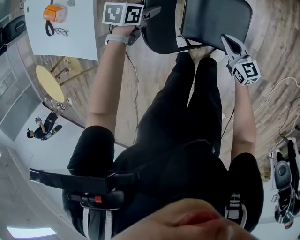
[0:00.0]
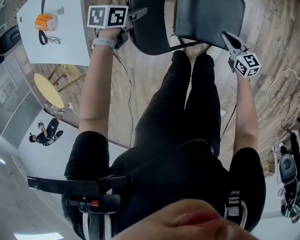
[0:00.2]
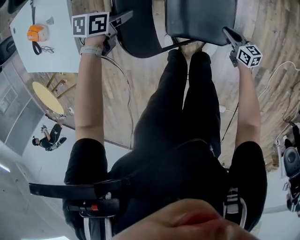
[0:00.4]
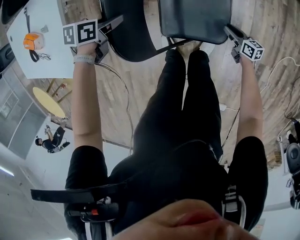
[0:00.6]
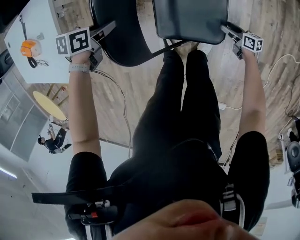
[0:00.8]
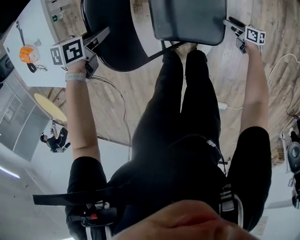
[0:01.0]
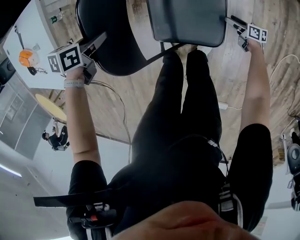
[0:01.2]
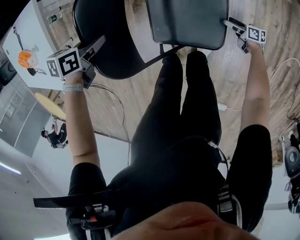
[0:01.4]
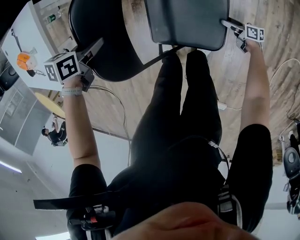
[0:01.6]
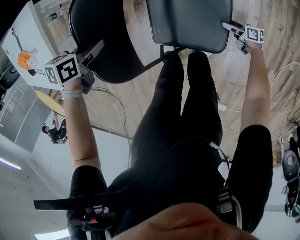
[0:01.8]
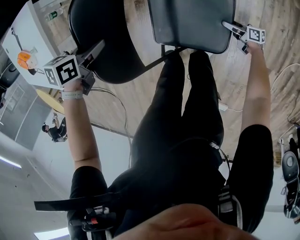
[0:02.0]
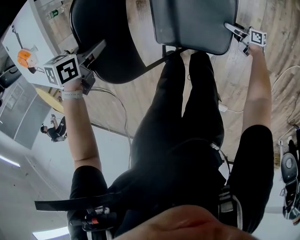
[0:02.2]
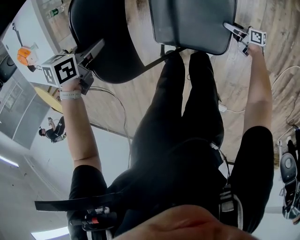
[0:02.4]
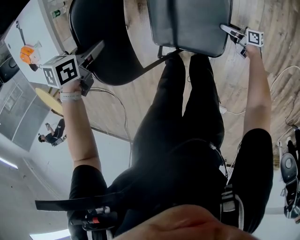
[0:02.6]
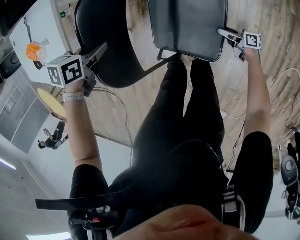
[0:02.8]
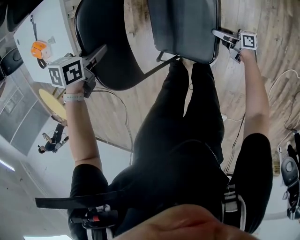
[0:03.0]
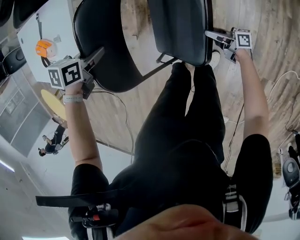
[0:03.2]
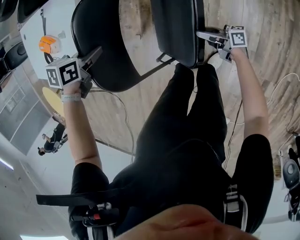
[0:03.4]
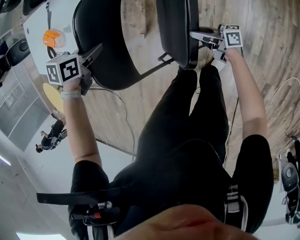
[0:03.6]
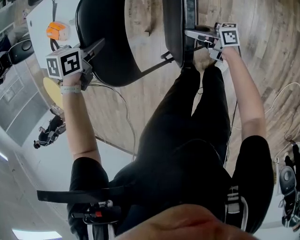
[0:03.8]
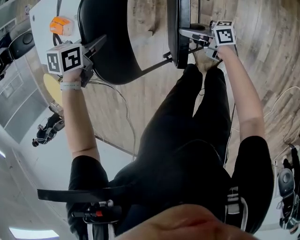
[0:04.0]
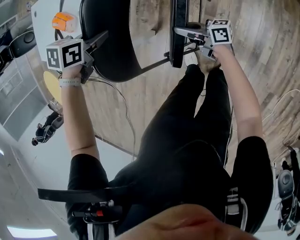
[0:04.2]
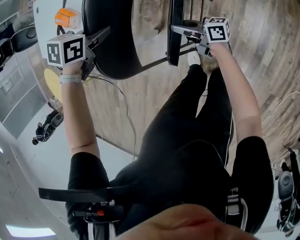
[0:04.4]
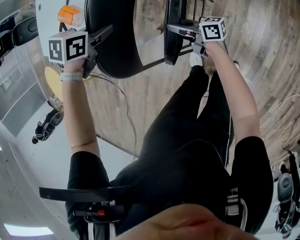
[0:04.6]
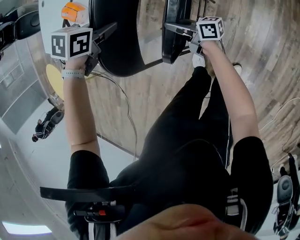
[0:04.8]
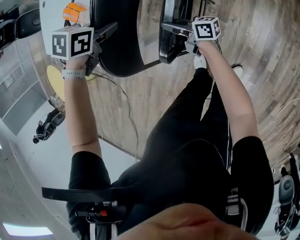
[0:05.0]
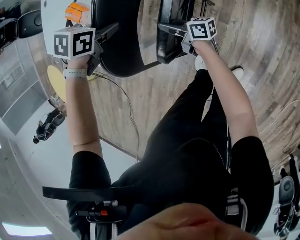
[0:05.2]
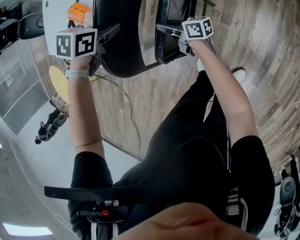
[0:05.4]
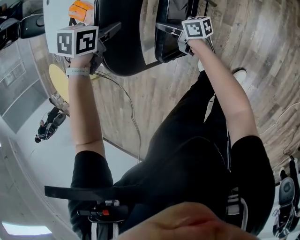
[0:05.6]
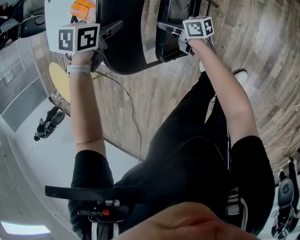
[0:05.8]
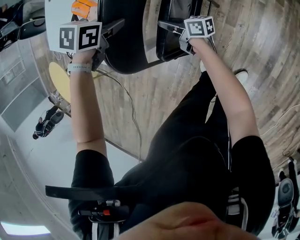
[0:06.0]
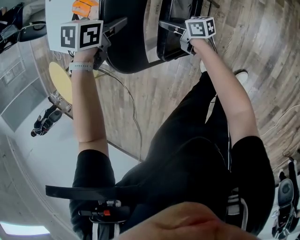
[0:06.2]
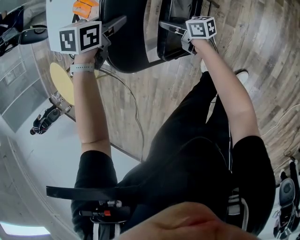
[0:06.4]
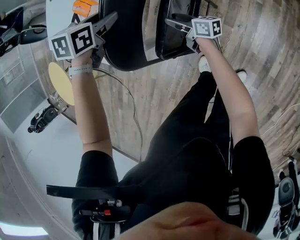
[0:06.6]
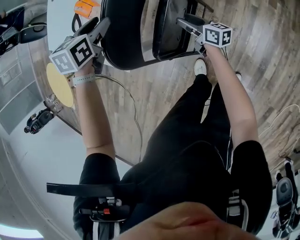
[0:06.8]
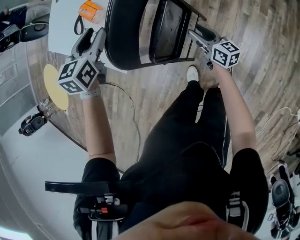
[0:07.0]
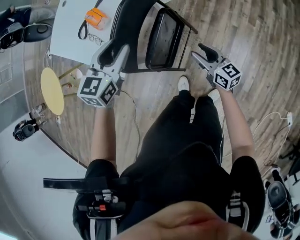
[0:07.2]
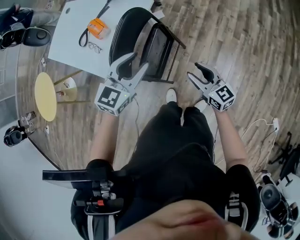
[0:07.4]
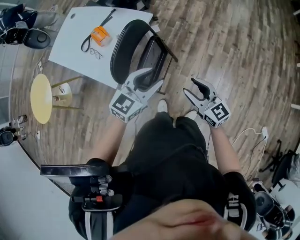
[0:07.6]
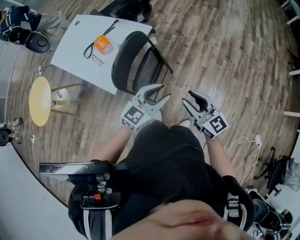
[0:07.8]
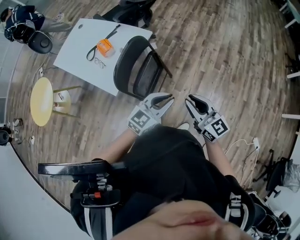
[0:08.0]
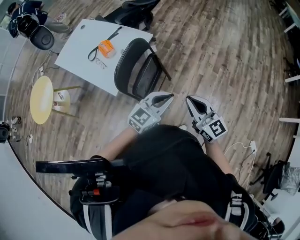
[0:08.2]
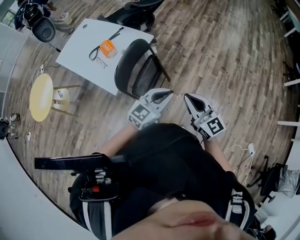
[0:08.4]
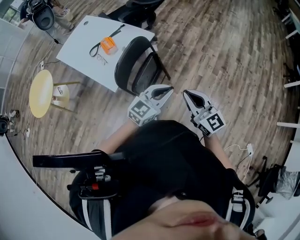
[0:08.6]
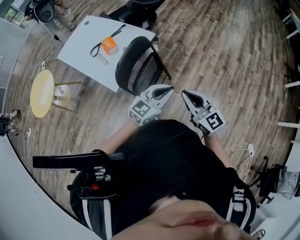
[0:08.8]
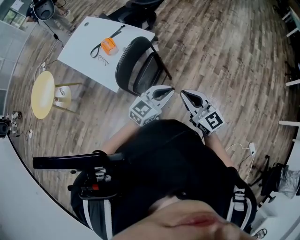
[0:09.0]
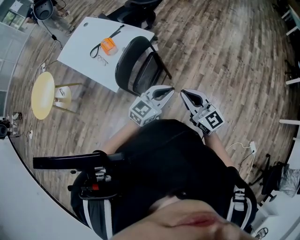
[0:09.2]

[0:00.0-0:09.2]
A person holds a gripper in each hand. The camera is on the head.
0:00.0 to 0:01.6: The left gripper shifts by roughly 10 cm, and closes up. The right gripper moves downward, some 35 cm, rotates around the line of its fingers by approximately 40 degrees, clockwise from behind, and opens its fingers.
0:01.6 to 0:03.0: The left gripper moves upward, approximately 5 cm. Meanwhile the right gripper shifts roughly 15 cm upward, rotates some 20 degrees, and closes its fingers.
0:03.0 to 0:04.6: The right gripper ends up approximately 40 cm from where it was, and closes. The left gripper ends up approximately 15 cm from where it was.
0:04.6 to 0:06.2: The right gripper moves about 15 cm. The left gripper ends up about 5 cm from where it was.
0:06.2 to 0:07.6: The left gripper moves about 40 cm, tips its fingers upward by approximately 50 degrees, and opens up. Meanwhile the right gripper goes roughly 35 cm upward, twists some 60 degrees counterclockwise, seen from behind, and opens.
0:07.6 to 0:09.2: The left gripper is displaced to the right and backward by approximately 10 cm, and closes, while the right gripper shifts approximately 15 cm upward, and closes up.

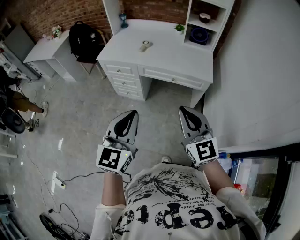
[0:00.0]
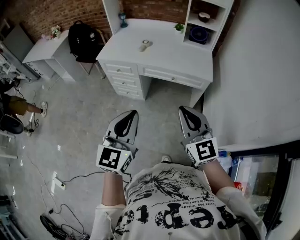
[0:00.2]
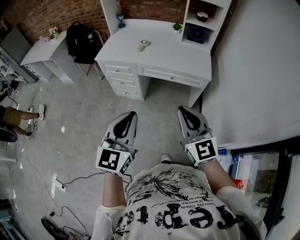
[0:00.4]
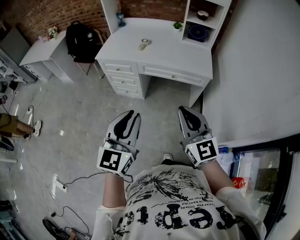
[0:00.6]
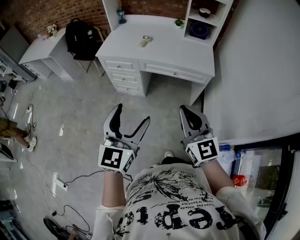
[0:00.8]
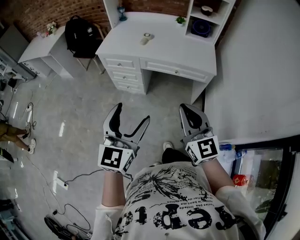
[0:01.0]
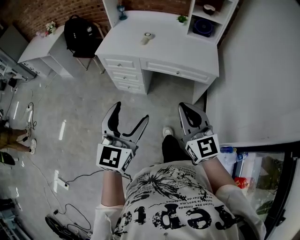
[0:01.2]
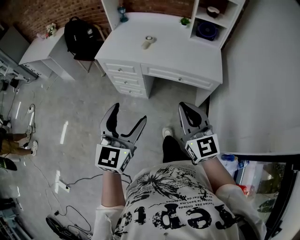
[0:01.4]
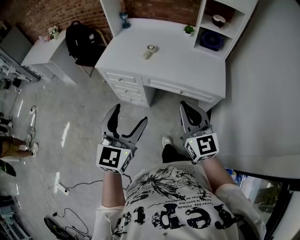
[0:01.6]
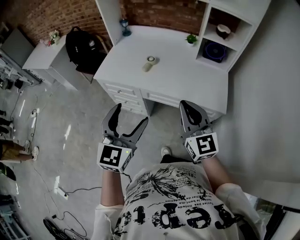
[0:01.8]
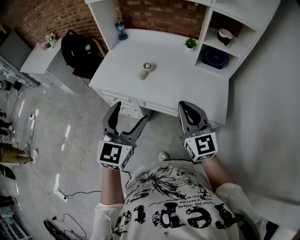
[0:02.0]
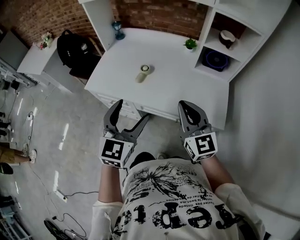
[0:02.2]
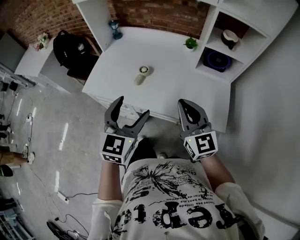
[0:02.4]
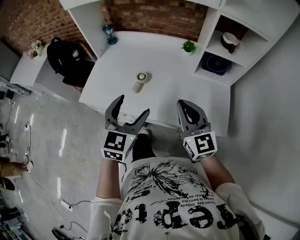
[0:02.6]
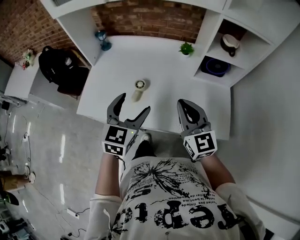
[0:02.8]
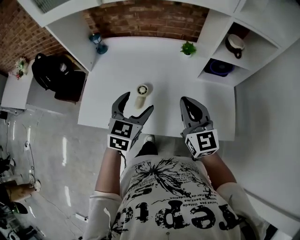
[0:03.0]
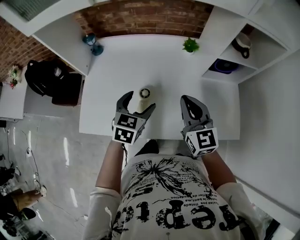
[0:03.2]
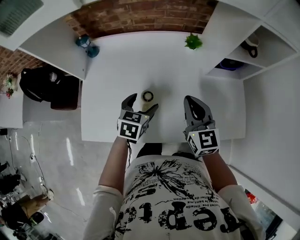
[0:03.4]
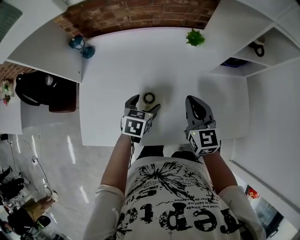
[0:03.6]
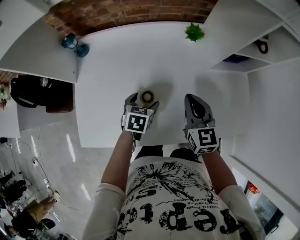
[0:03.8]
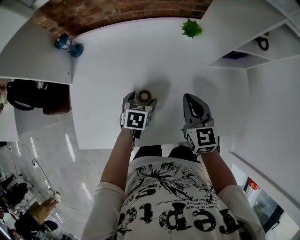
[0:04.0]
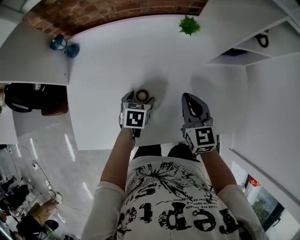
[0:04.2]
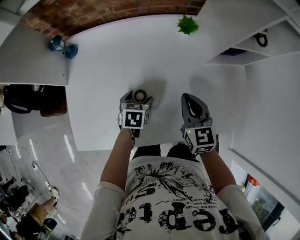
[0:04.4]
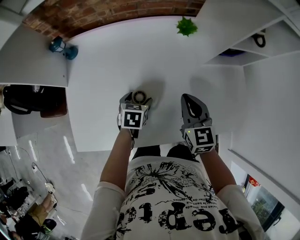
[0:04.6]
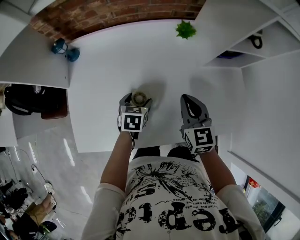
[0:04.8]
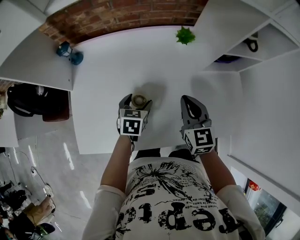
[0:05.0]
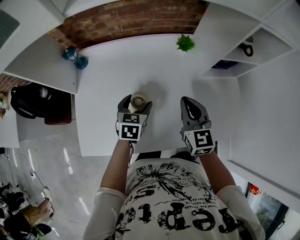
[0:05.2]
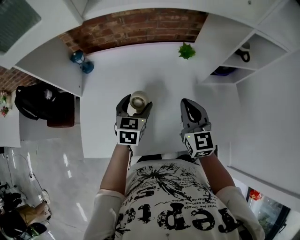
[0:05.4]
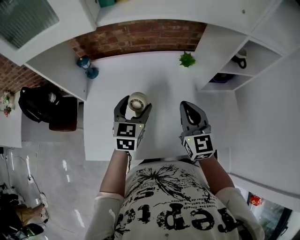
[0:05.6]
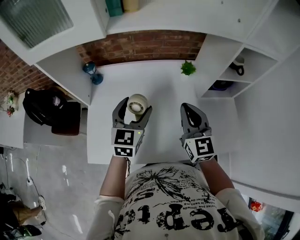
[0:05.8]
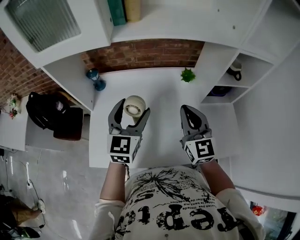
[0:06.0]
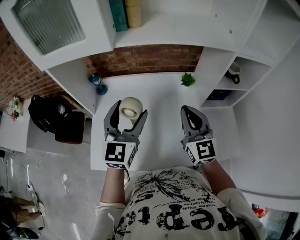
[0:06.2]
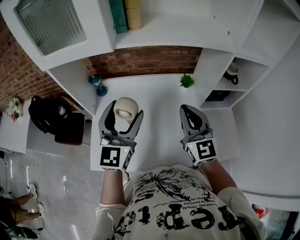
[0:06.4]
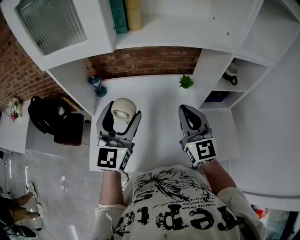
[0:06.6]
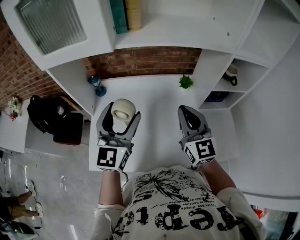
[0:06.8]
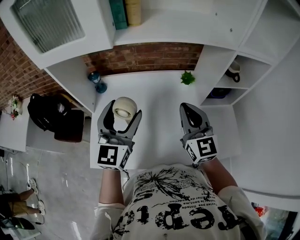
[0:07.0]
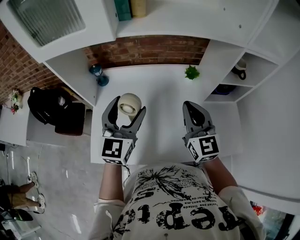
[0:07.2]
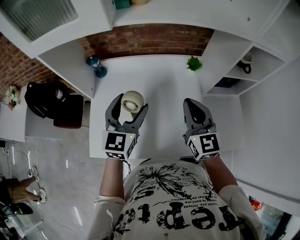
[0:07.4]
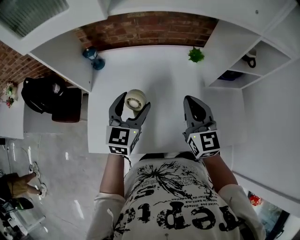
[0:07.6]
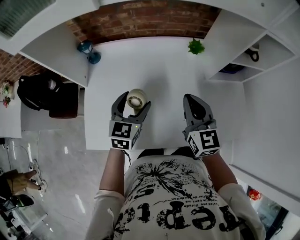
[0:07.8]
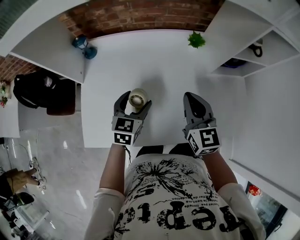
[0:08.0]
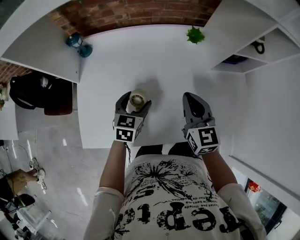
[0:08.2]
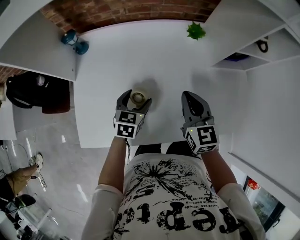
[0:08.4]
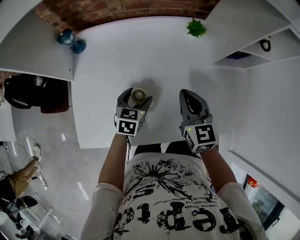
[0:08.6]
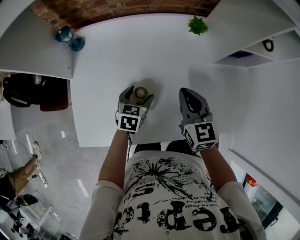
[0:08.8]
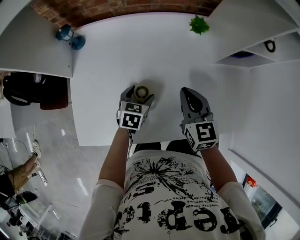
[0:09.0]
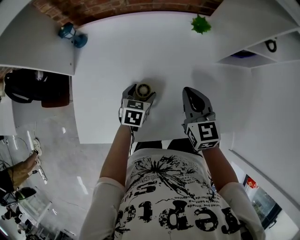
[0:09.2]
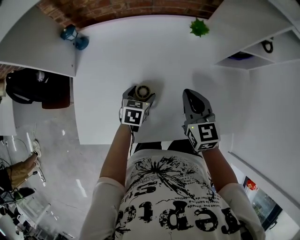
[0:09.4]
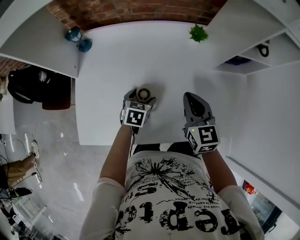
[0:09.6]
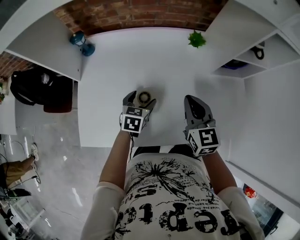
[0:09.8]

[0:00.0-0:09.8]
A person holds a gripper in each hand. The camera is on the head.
0:00.0 to 0:01.4: The right gripper moves forward, about 10 cm, while the left gripper moves forward and to the left, roughly 10 cm, and opens up.
0:01.4 to 0:02.8: The two grippers travel together, forward, approximately 50 cm.
0:02.8 to 0:04.2: The right gripper goes some 25 cm forward, downward and to the left, and changes its angle by about 30 degrees. Meanwhile the left gripper heads downward and forward, covering some 35 cm, and tips its fingers downward by approximately 40 degrees.
0:04.2 to 0:05.6: The left gripper goes about 20 cm upward, and tilts its fingers some 30 degrees upward. The right gripper goes approximately 15 cm upward.
0:05.6 to 0:07.0: The left gripper is displaced upward by about 15 cm, and changes its angle by about 30 degrees. Meanwhile the right gripper heads upward, covering approximately 10 cm.
0:07.0 to 0:08.4: The left gripper shifts roughly 35 cm downward, and tilts its fingers about 40 degrees downward, while the right gripper moves downward, about 20 cm, and swivels about 20 degrees.
0:08.4 to 0:09.8: The grippers make only small movements.

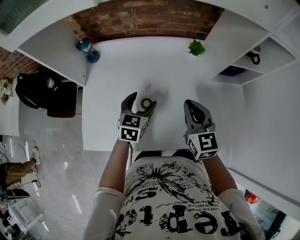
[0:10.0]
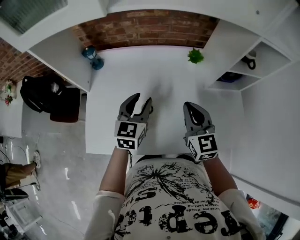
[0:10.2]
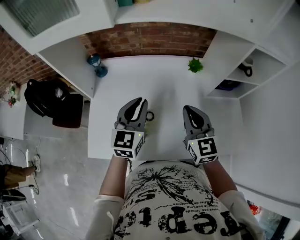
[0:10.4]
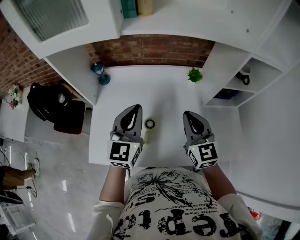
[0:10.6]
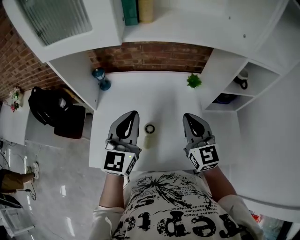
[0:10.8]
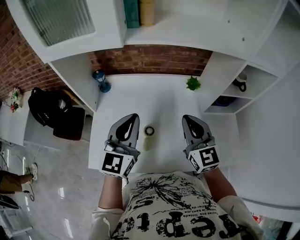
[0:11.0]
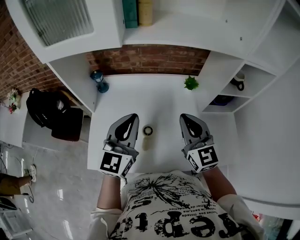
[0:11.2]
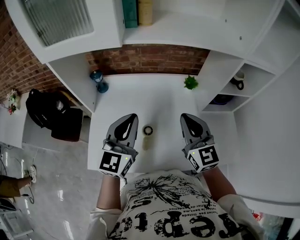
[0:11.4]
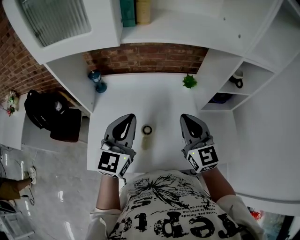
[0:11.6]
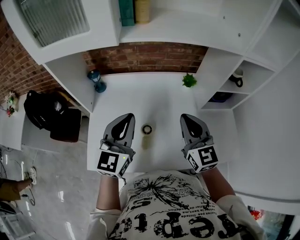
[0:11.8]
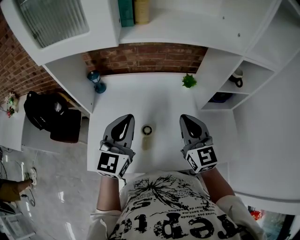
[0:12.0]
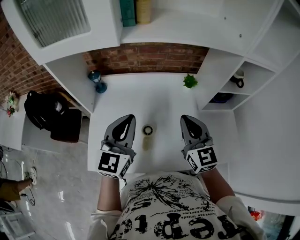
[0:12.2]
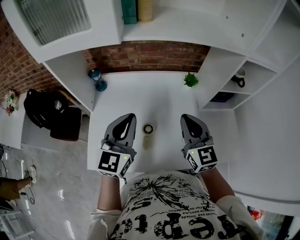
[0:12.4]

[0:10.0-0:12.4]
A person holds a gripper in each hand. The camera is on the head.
0:10.0 to 0:11.2: The right gripper heads upward, covering about 10 cm. Meanwhile the left gripper shifts about 25 cm upward, angles its fingers upward, by some 30 degrees, and closes up.
0:11.2 to 0:12.4: There are only small adjustments of the grippers.

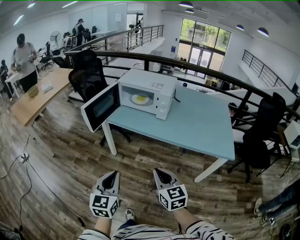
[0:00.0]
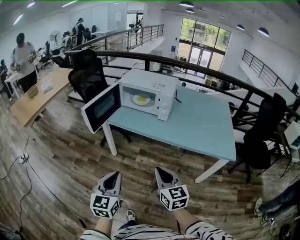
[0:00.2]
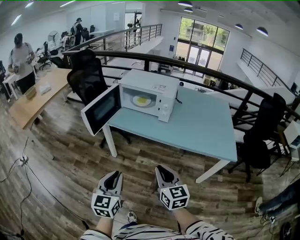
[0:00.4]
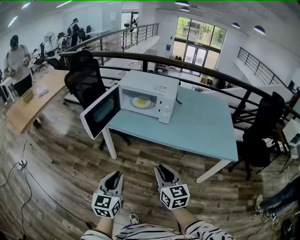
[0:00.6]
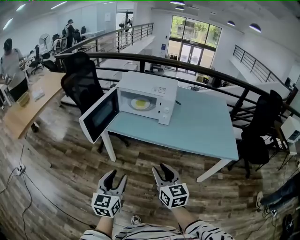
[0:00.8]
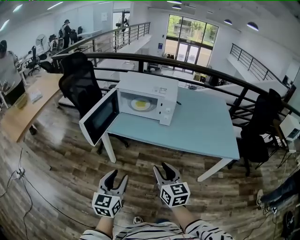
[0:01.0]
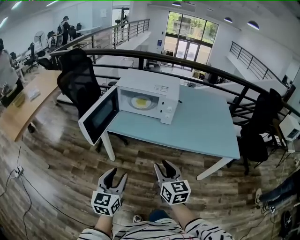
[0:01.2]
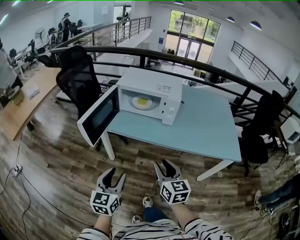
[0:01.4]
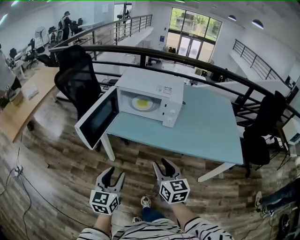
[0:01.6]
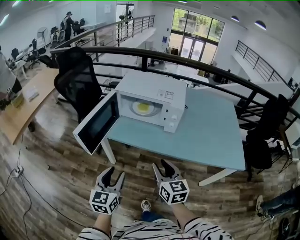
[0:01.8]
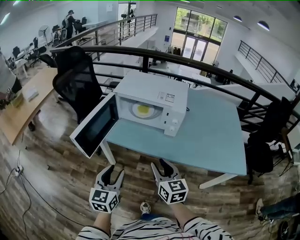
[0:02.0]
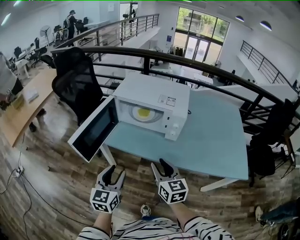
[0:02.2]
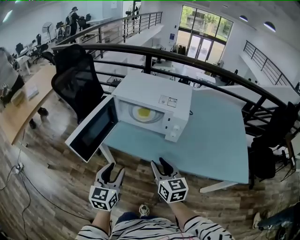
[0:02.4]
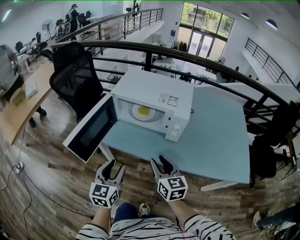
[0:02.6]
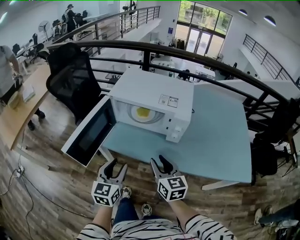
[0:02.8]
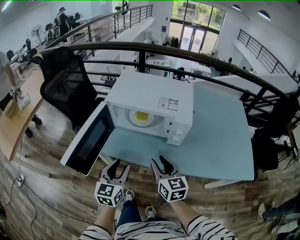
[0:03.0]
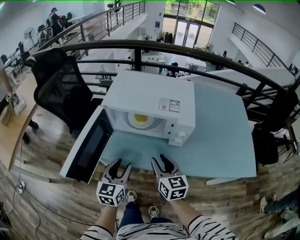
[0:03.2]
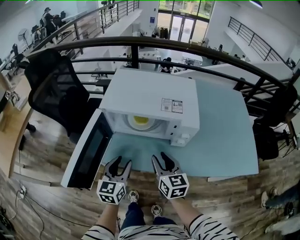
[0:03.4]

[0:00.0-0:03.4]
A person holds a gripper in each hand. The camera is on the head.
0:00.0 to 0:01.6: The left gripper goes roughly 20 cm forward and to the left, and opens its fingers, while the right gripper goes approximately 20 cm forward, and opens up.
0:01.6 to 0:03.4: The two grippers go about 30 cm forward.
